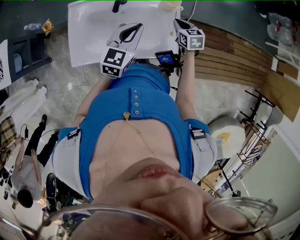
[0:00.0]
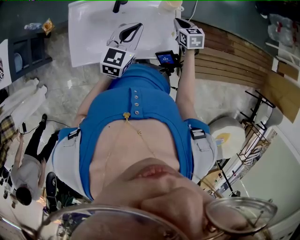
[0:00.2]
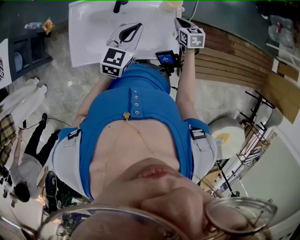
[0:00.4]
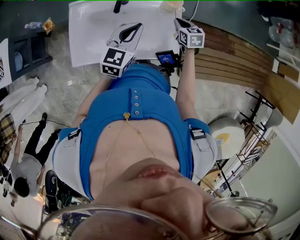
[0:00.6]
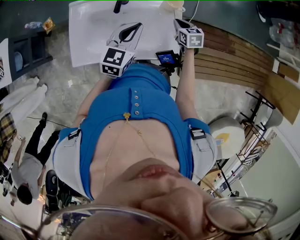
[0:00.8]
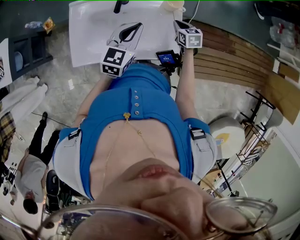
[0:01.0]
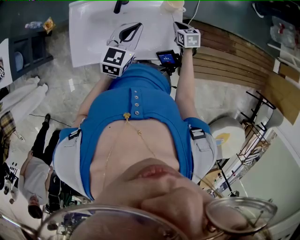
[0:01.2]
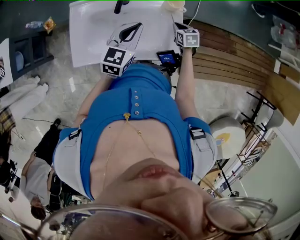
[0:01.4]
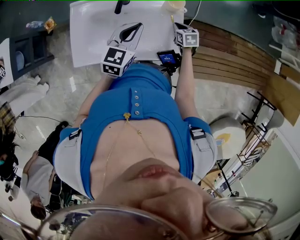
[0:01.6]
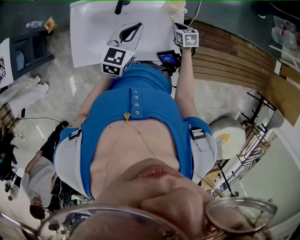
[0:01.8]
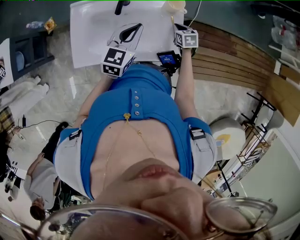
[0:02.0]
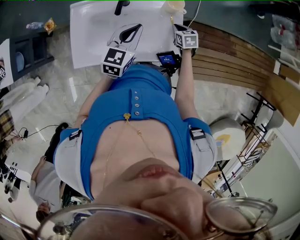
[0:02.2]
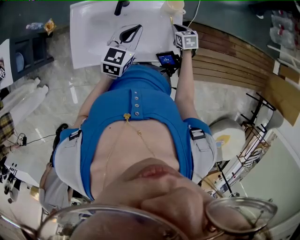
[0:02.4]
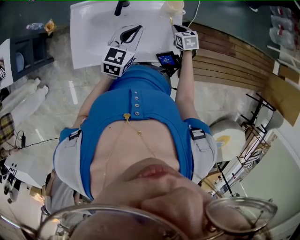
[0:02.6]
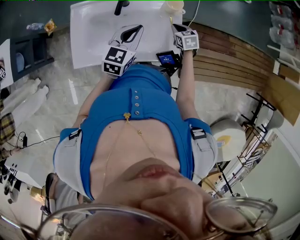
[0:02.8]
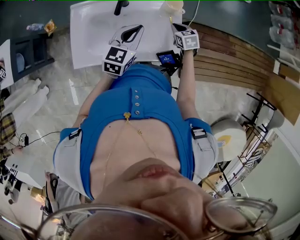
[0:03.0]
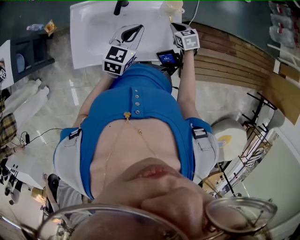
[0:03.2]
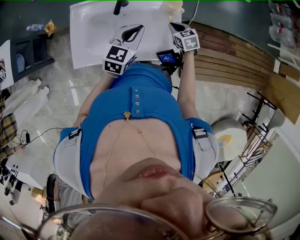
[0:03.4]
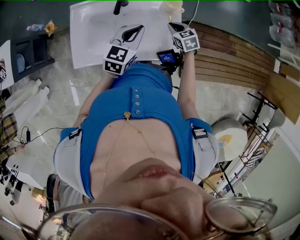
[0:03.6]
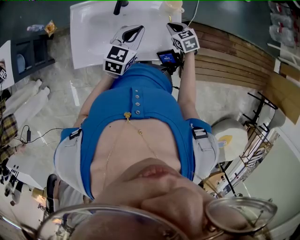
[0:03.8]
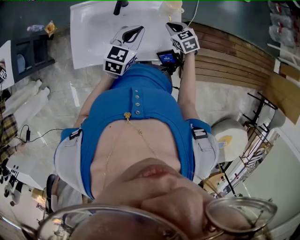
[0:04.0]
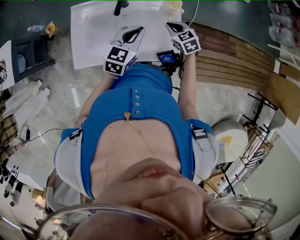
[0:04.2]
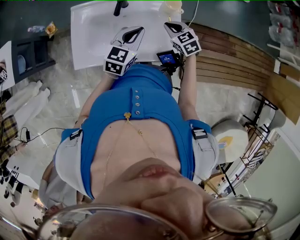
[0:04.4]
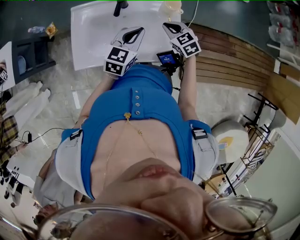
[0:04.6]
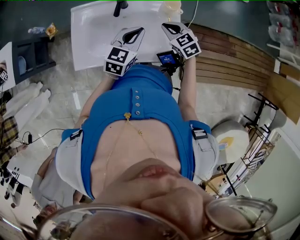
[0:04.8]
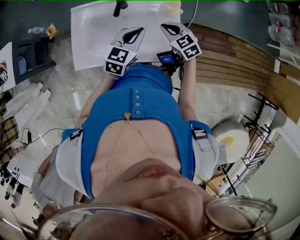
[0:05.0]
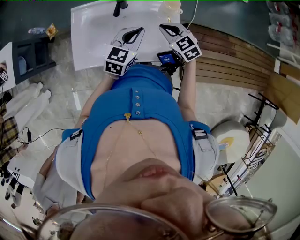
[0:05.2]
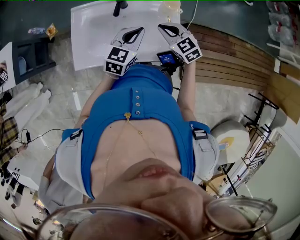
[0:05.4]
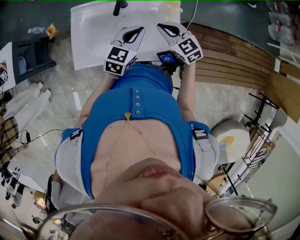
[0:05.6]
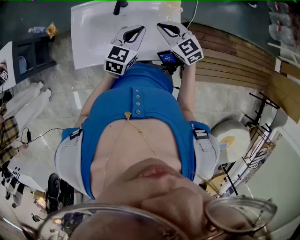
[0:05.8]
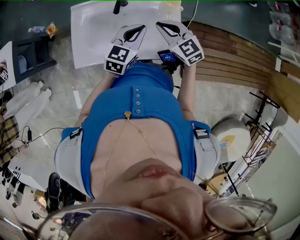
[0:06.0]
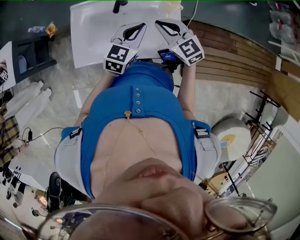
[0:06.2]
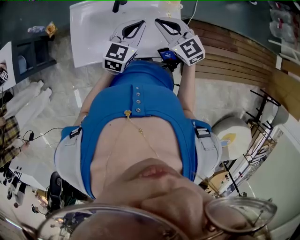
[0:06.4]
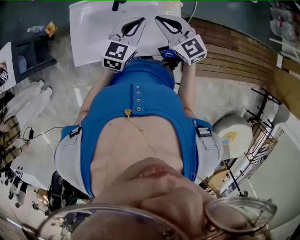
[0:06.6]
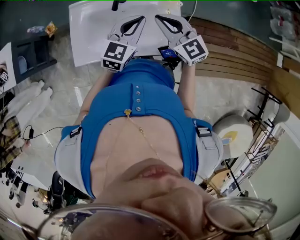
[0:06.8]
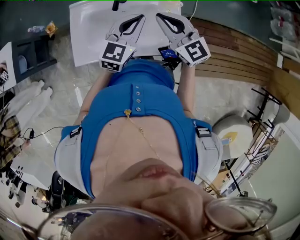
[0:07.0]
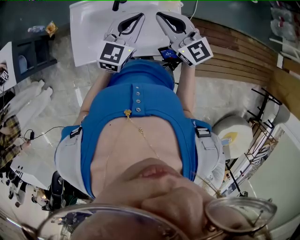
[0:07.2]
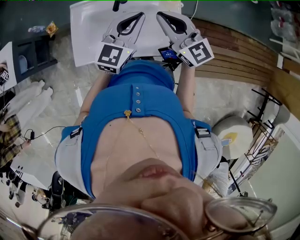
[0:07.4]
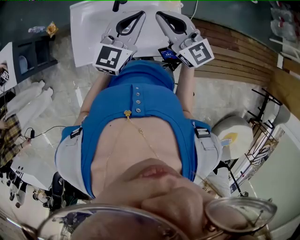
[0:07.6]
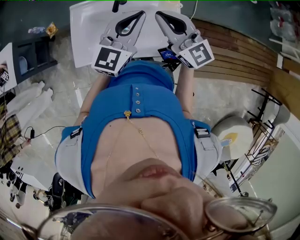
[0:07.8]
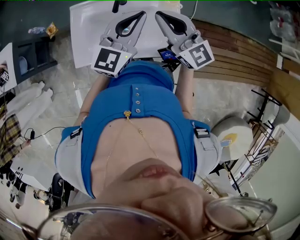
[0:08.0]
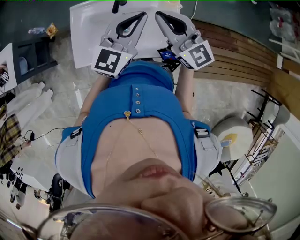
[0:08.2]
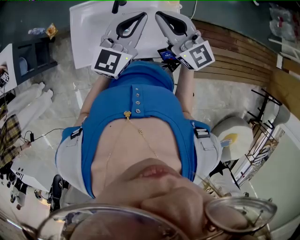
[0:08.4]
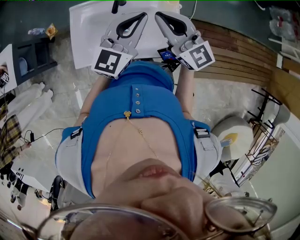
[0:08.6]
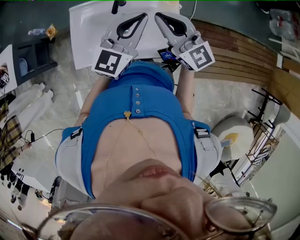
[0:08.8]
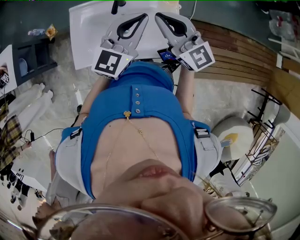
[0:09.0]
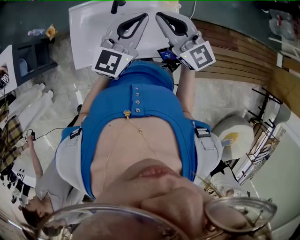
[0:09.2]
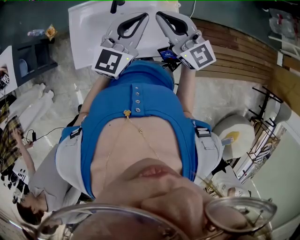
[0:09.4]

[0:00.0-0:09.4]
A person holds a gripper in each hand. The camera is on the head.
0:00.0 to 0:01.6: The right gripper is displaced downward by approximately 10 cm.
0:01.6 to 0:03.2: There are only small adjustments of the grippers.
0:03.2 to 0:04.8: The right gripper moves upward and to the left, about 10 cm, and rotates approximately 20 degrees.
0:04.8 to 0:06.2: The right gripper moves upward, about 10 cm, and turns by about 20 degrees.
0:06.2 to 0:07.8: Both grippers travel together upward, about 10 cm. The right gripper changes its angle by about 30 degrees.
0:07.8 to 0:09.4: The grippers stay close to where they were, moving slightly.

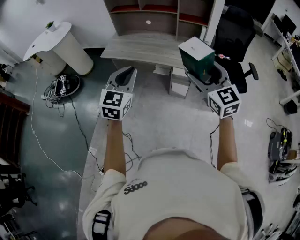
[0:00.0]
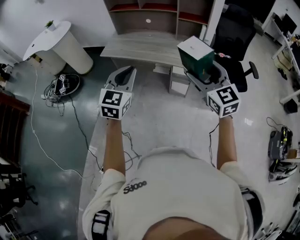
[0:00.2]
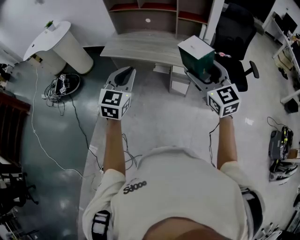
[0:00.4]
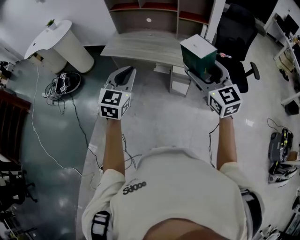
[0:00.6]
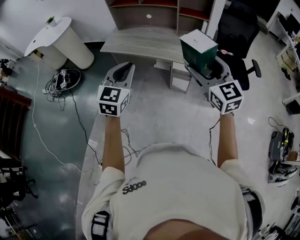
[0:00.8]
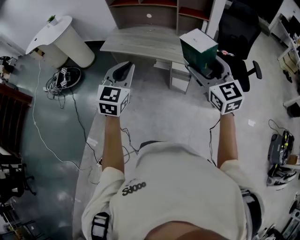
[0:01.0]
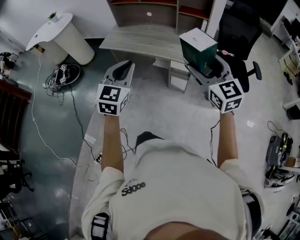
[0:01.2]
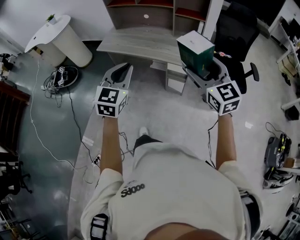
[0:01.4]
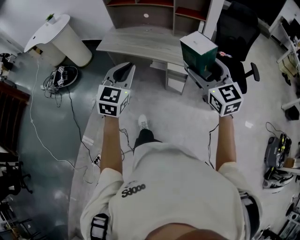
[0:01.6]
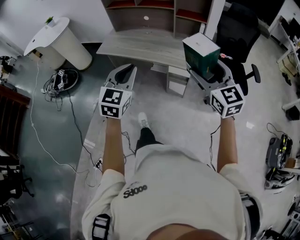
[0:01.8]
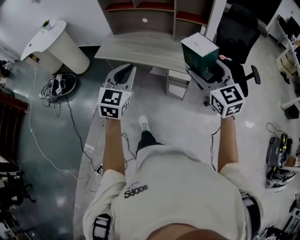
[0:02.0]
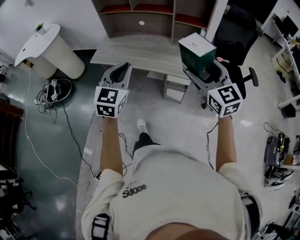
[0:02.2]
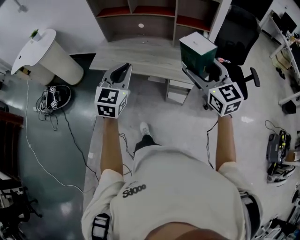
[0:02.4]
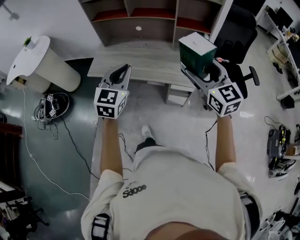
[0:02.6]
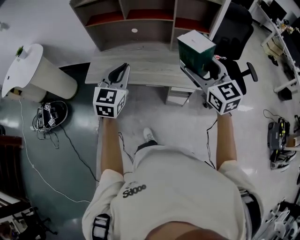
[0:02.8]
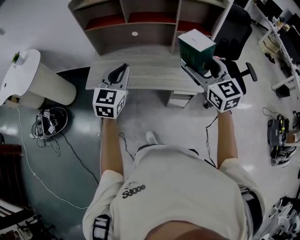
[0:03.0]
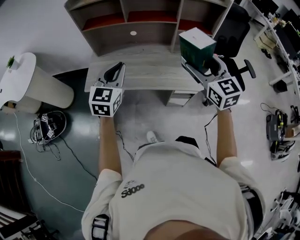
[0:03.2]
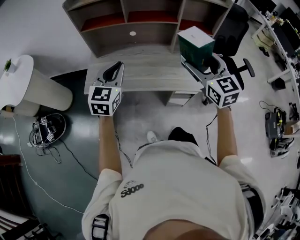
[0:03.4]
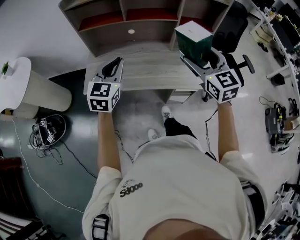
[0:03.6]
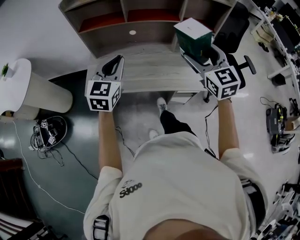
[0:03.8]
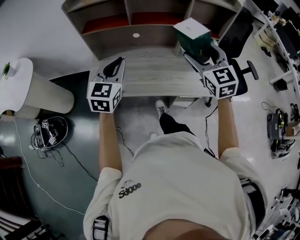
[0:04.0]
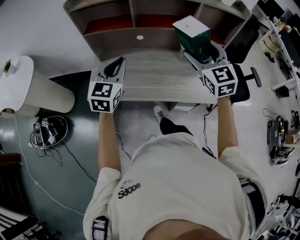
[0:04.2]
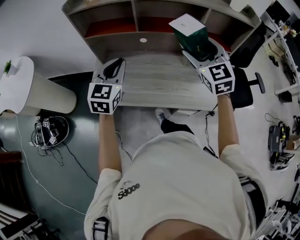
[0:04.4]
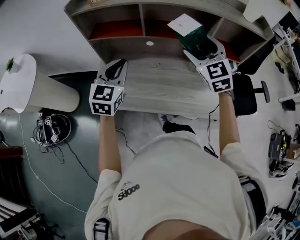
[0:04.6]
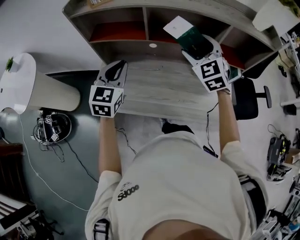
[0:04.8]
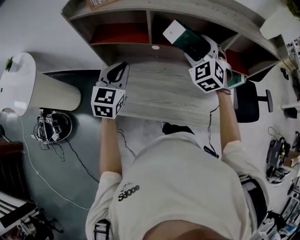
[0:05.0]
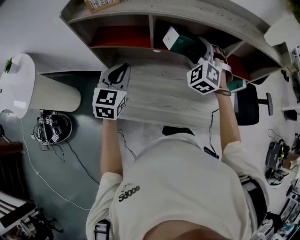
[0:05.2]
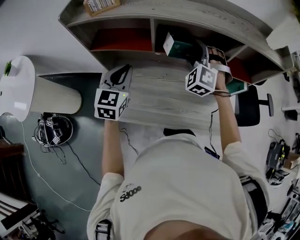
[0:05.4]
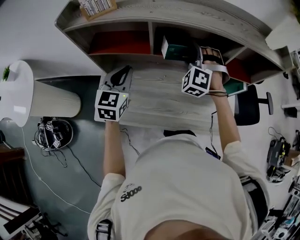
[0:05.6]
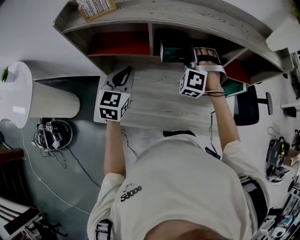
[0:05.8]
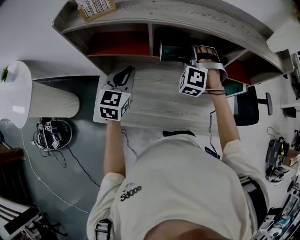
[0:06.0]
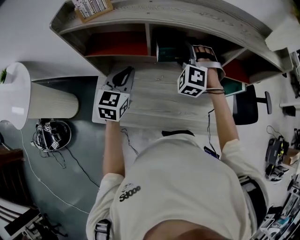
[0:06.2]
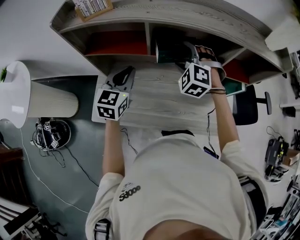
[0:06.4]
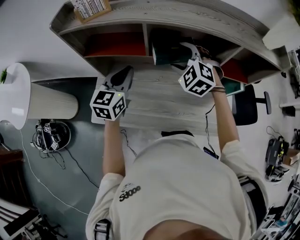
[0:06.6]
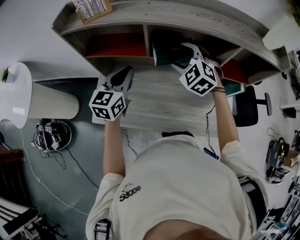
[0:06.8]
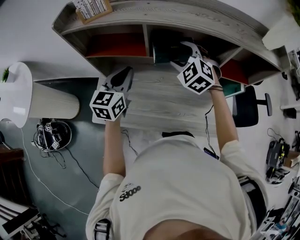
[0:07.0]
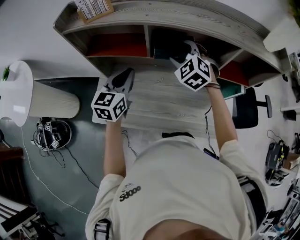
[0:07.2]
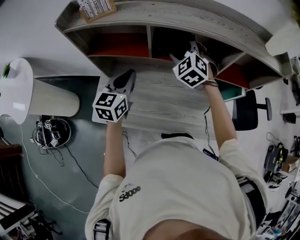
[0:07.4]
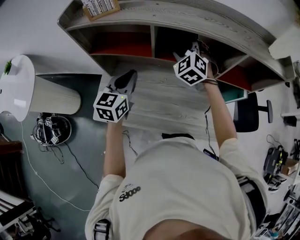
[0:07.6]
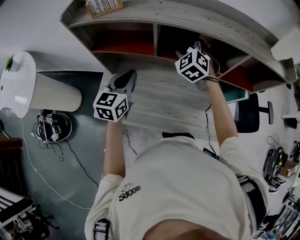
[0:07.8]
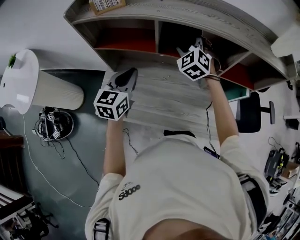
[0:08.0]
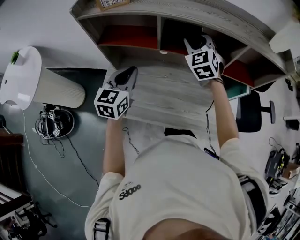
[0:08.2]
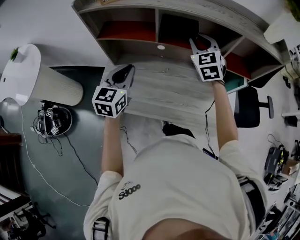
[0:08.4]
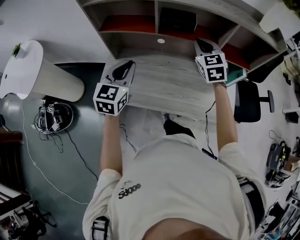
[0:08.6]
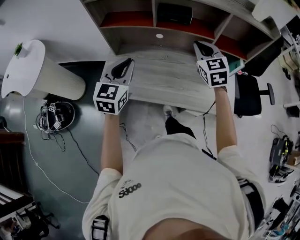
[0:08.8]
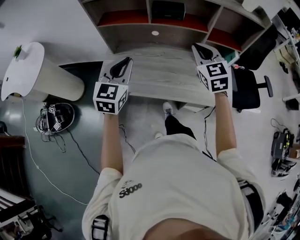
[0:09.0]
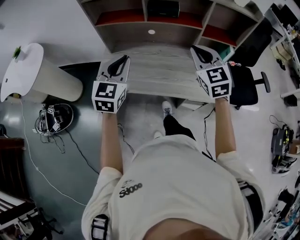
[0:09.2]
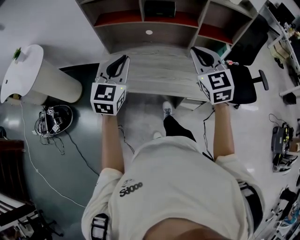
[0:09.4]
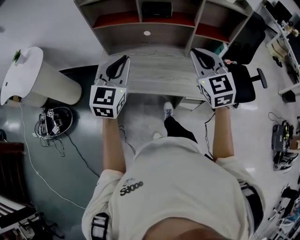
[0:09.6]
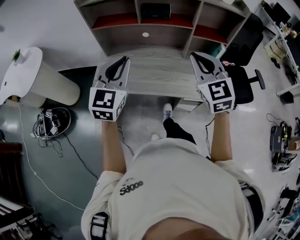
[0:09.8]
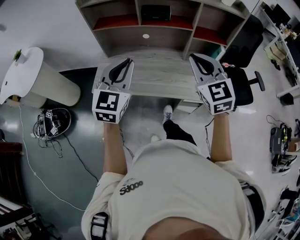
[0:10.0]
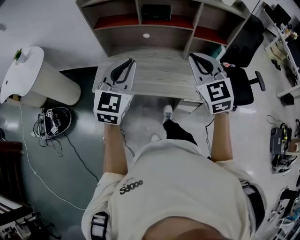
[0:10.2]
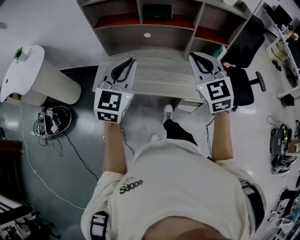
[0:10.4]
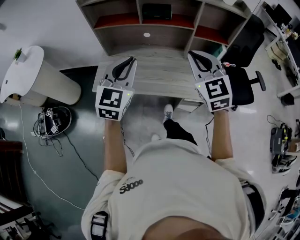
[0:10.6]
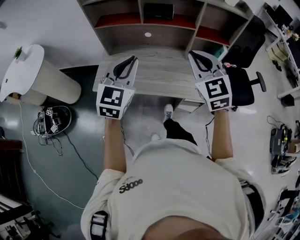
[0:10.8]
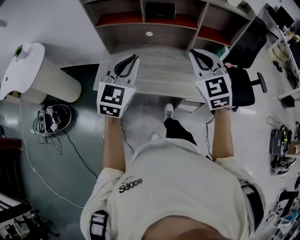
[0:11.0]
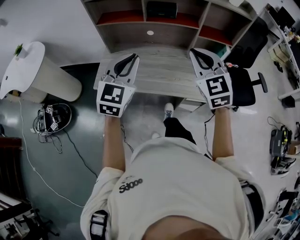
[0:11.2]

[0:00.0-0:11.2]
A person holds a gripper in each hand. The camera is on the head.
0:00.0 to 0:01.6: The two grippers go approximately 10 cm to the right.
0:01.6 to 0:03.2: The grippers both shift forward and to the left by some 40 cm.
0:03.2 to 0:04.8: The two grippers go approximately 30 cm forward. The right gripper swivels about 30 degrees.
0:04.8 to 0:06.4: The right gripper travels downward, forward and to the left by roughly 15 cm, and swivels approximately 40 degrees, while the left gripper shifts roughly 10 cm forward.
0:06.4 to 0:08.0: The right gripper moves forward, about 5 cm, and changes its angle by roughly 20 degrees.
0:08.0 to 0:09.6: Both grippers travel together backward, roughly 35 cm. The right gripper rotates approximately 30 degrees, and closes. The left gripper turns by roughly 20 degrees.
0:09.6 to 0:11.2: The grippers move only a little.

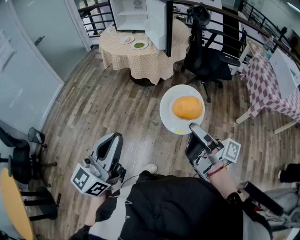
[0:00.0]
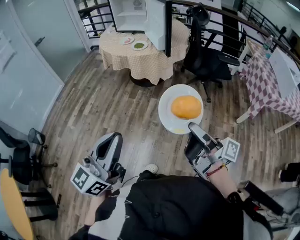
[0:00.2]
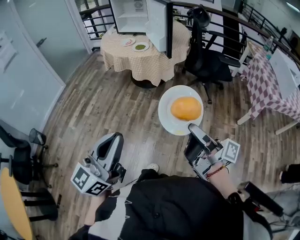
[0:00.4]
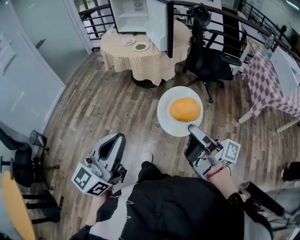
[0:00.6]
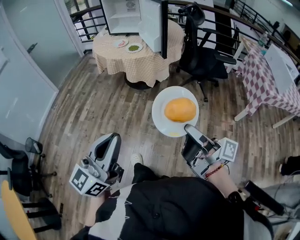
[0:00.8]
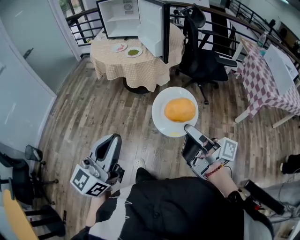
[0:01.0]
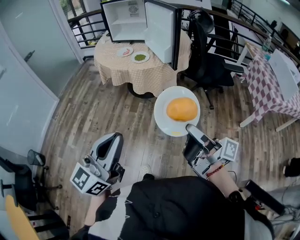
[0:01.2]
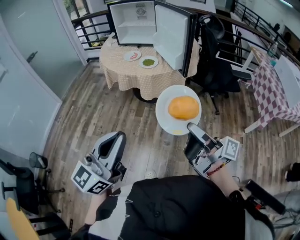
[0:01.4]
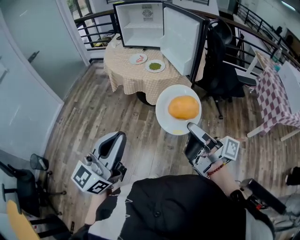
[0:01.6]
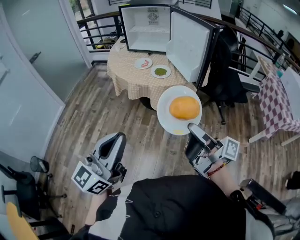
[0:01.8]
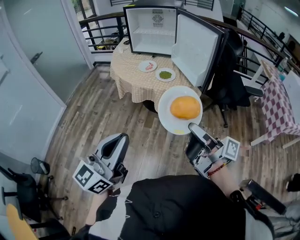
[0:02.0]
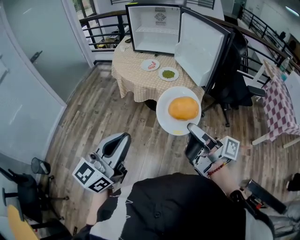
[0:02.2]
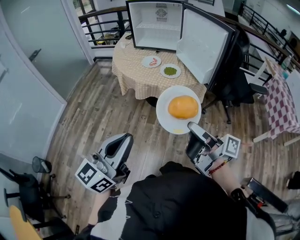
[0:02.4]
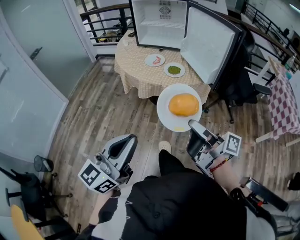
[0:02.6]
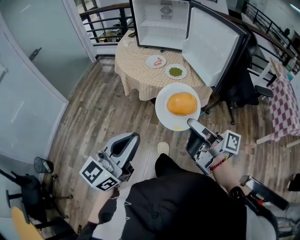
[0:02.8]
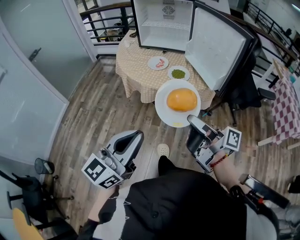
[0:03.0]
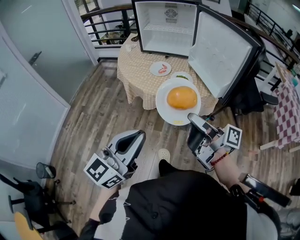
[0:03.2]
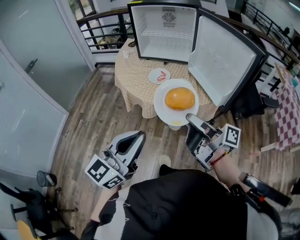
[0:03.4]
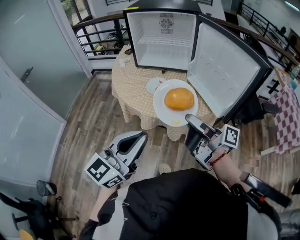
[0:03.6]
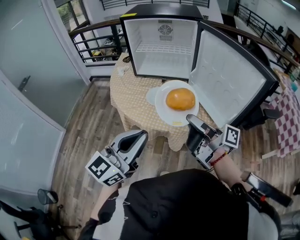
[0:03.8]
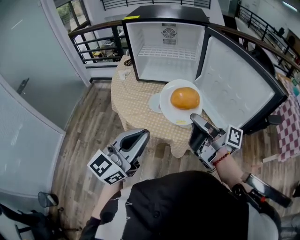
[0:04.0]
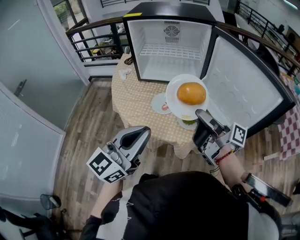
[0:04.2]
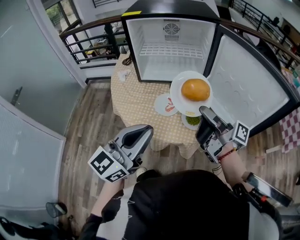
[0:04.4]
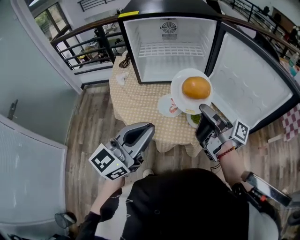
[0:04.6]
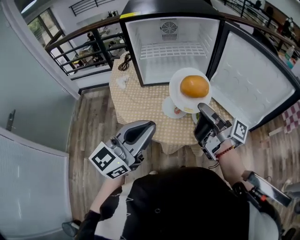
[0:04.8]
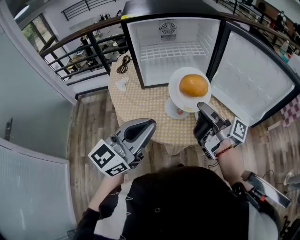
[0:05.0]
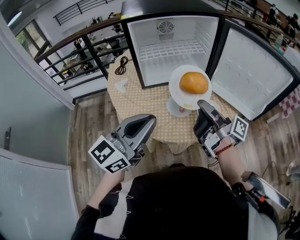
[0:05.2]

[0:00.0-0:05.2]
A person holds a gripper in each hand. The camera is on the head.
0:00.0 to 0:01.8: The left gripper shifts by some 35 cm.
0:01.8 to 0:03.4: The left gripper changes place by some 25 cm.
0:03.4 to 0:05.2: The left gripper ends up some 40 cm from where it was, and changes its angle by approximately 30 degrees.
